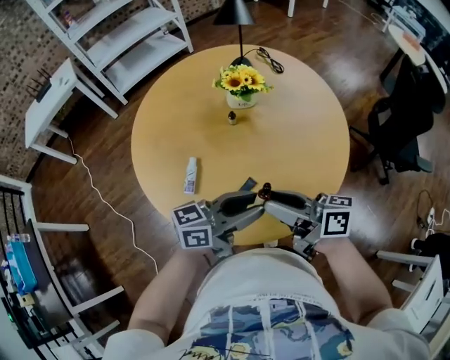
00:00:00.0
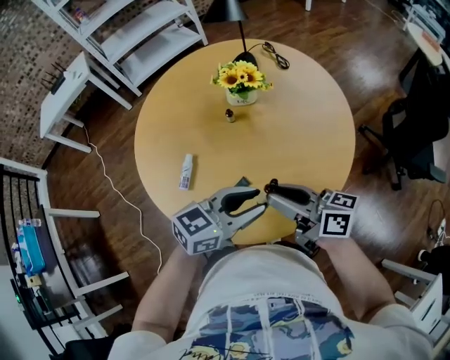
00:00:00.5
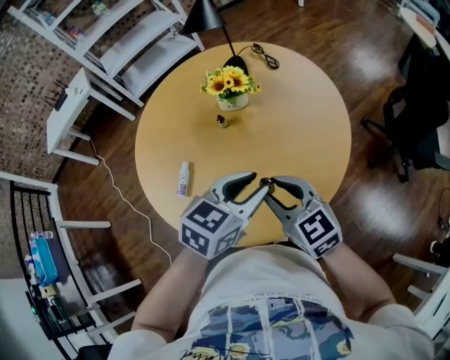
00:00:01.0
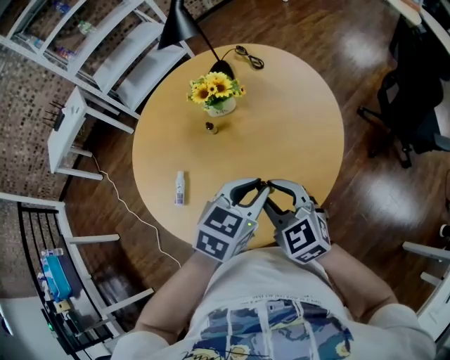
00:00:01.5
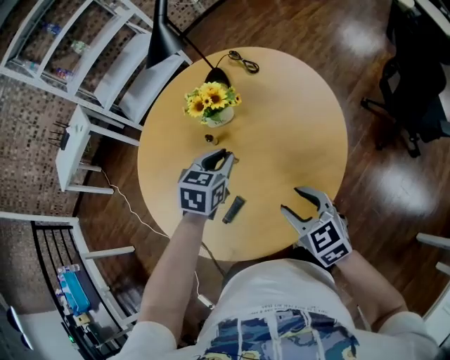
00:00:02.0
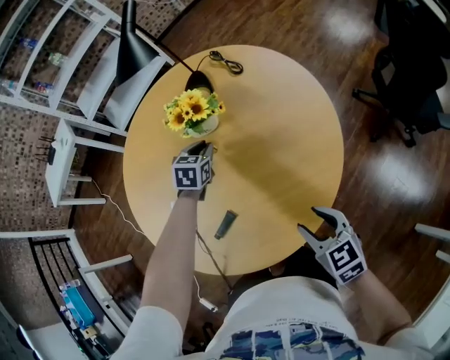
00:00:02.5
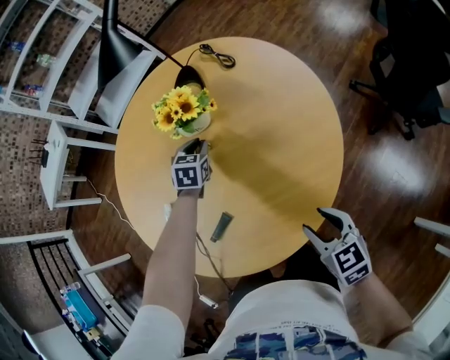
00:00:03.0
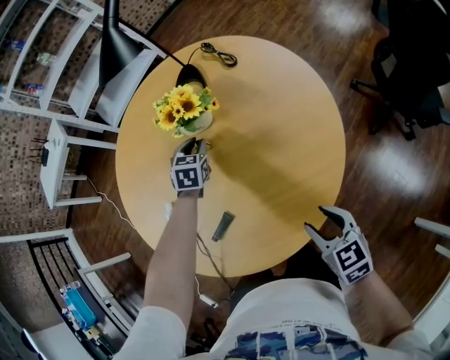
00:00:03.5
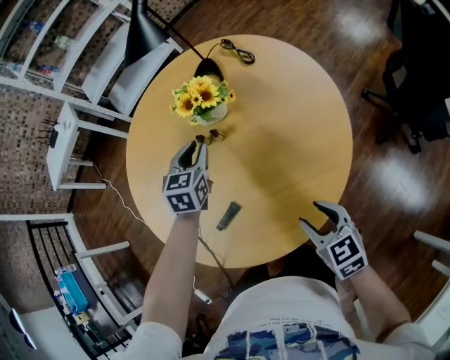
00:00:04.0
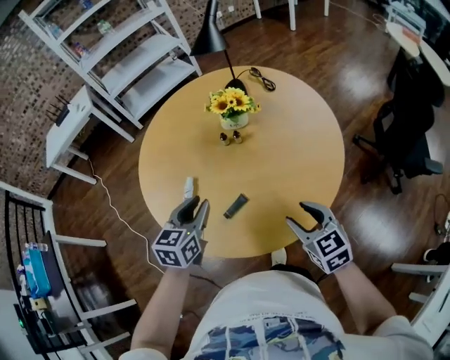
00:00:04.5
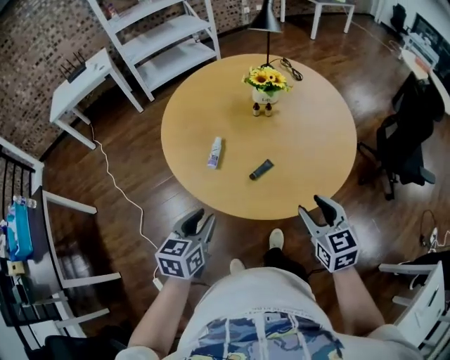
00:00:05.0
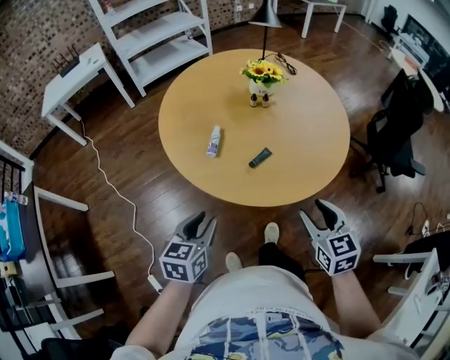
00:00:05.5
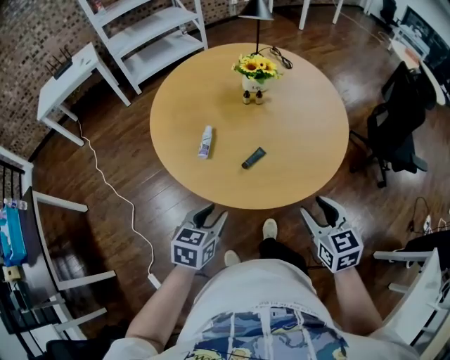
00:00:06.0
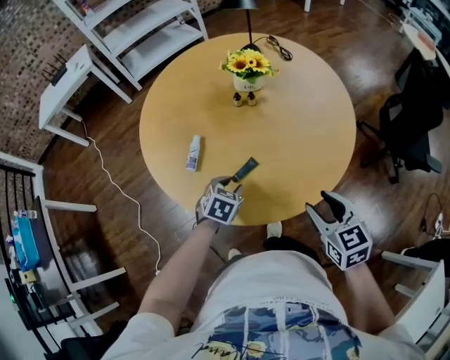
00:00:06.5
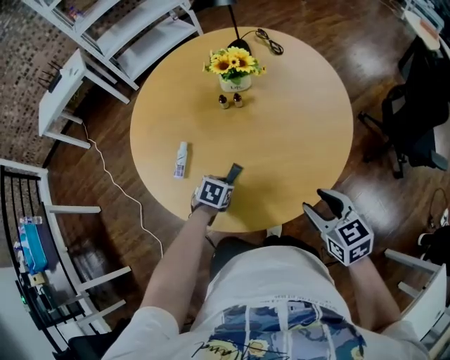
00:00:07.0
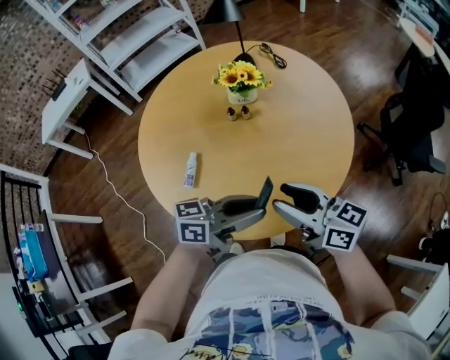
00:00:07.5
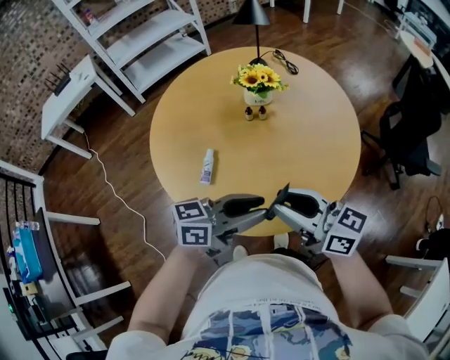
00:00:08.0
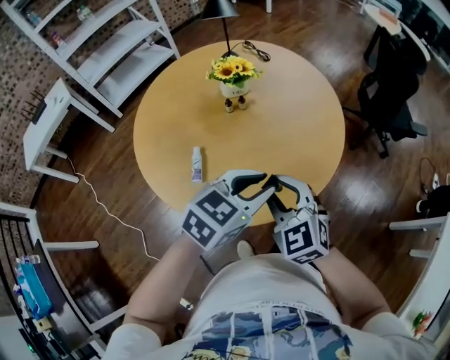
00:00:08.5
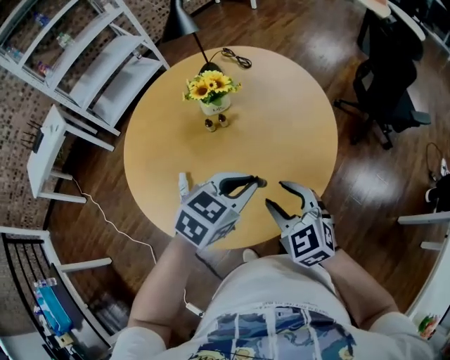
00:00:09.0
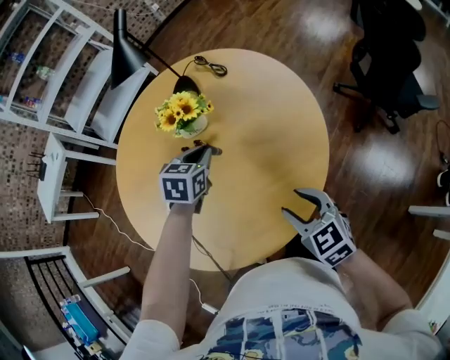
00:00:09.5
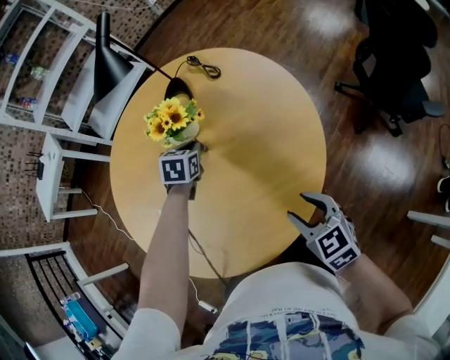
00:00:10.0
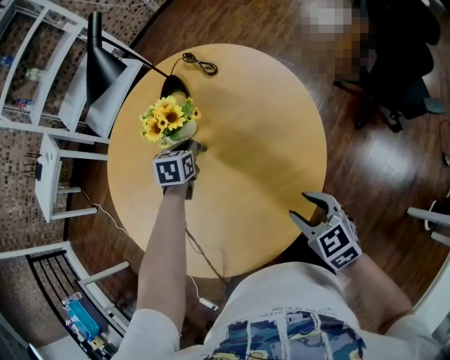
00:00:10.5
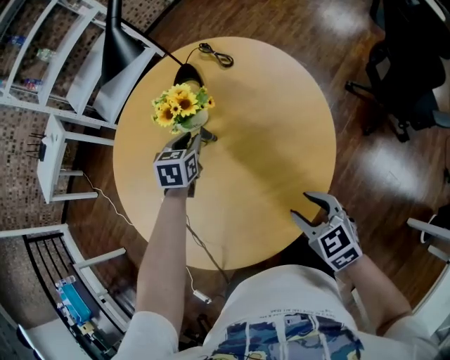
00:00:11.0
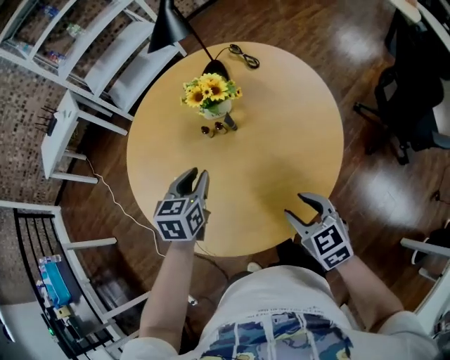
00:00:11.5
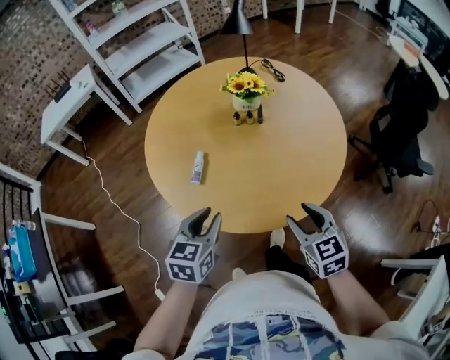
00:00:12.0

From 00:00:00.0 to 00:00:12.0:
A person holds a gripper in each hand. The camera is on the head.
From 00:00:00.0 to 00:00:02.0: The right gripper moves approximately 20 cm, and swivels roughly 60 degrees, while the left gripper changes place by about 25 cm, and tilts its fingers about 50 degrees downward.
From 00:00:02.0 to 00:00:04.0: The left gripper goes roughly 10 cm forward and to the left, while the right gripper moves downward and to the right, roughly 10 cm.
From 00:00:04.0 to 00:00:06.0: The left gripper goes some 50 cm backward and to the left, and changes its angle by about 20 degrees. The right gripper travels backward, to the left and upward by approximately 30 cm.
From 00:00:06.0 to 00:00:08.0: The left gripper changes place by roughly 20 cm, and tips its fingers upward by roughly 40 degrees. The right gripper changes place by about 20 cm, and swivels about 50 degrees.
From 00:00:08.0 to 00:00:10.0: The right gripper shifts by about 35 cm, and tips its fingers downward by some 30 degrees. The left gripper changes place by approximately 50 cm, and angles its fingers downward, by some 50 degrees.
From 00:00:10.0 to 00:00:12.0: The right gripper shifts approximately 25 cm to the left and backward, while the left gripper travels backward and to the left by some 50 cm, and rotates approximately 30 degrees.

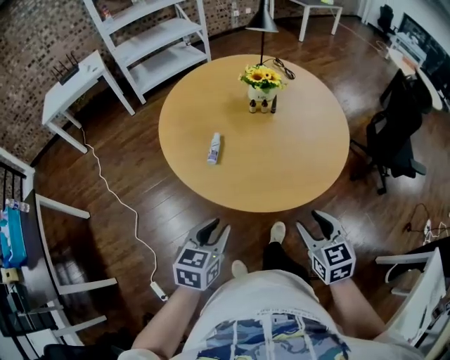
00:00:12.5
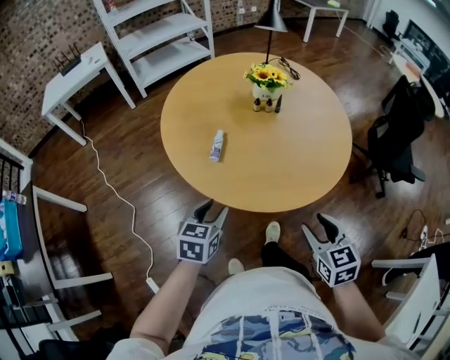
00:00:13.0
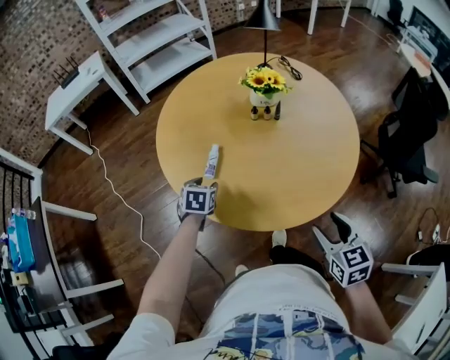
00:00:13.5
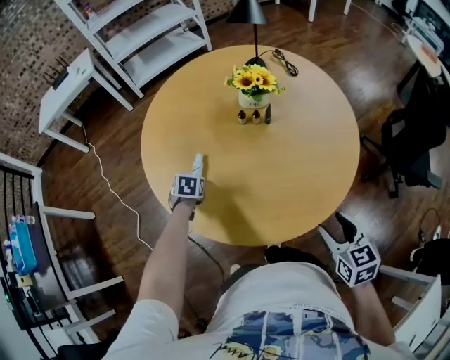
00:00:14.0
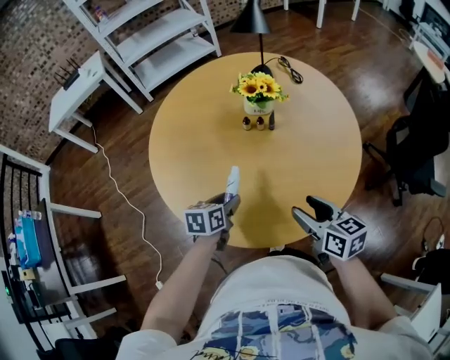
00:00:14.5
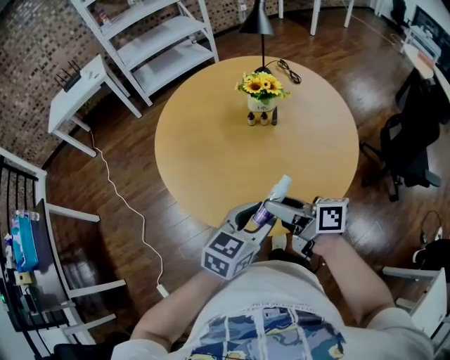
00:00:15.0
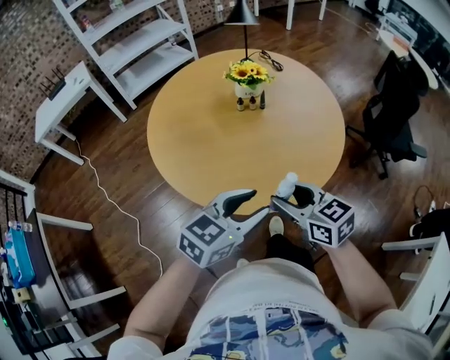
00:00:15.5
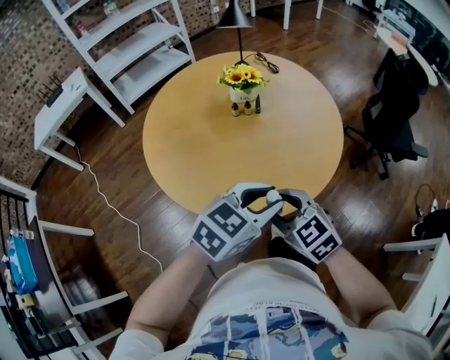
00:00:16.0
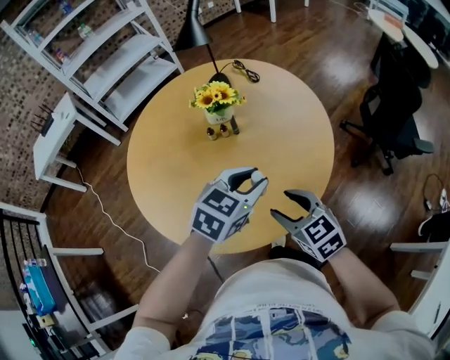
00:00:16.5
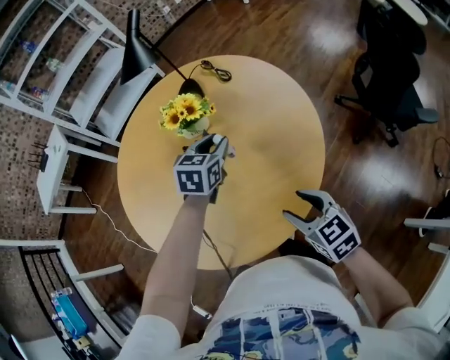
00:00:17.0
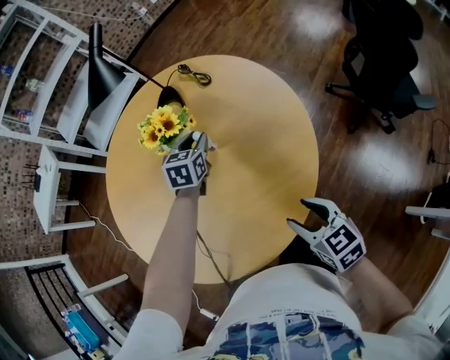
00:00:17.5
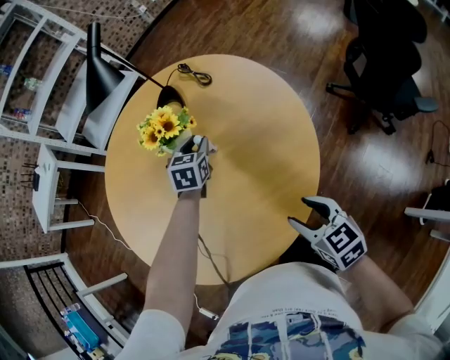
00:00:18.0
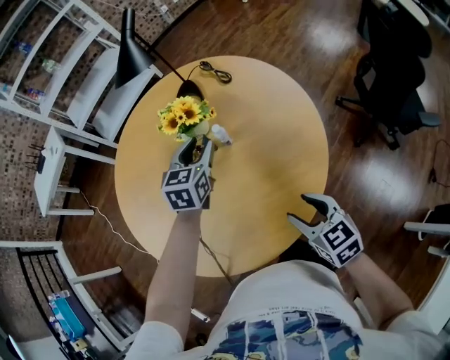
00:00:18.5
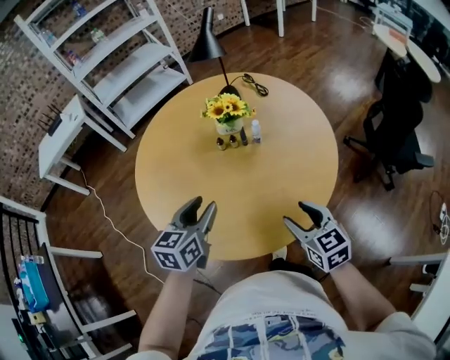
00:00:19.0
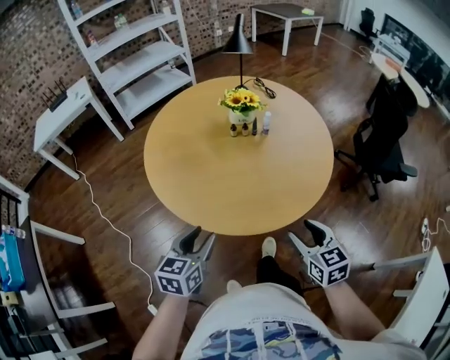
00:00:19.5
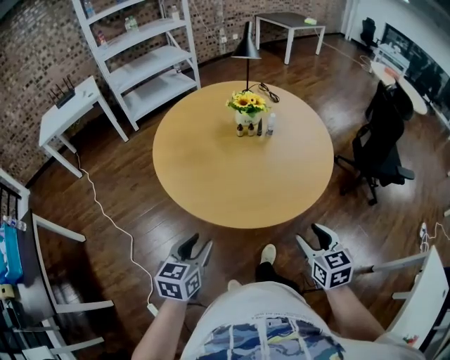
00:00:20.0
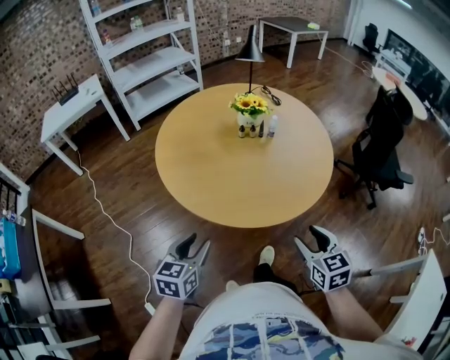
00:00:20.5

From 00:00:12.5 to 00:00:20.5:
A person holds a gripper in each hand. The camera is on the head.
From 00:00:12.5 to 00:00:14.5: The right gripper is displaced forward by roughly 20 cm, and changes its angle by some 30 degrees. The left gripper goes approximately 30 cm forward and to the right, and rotates about 20 degrees.
From 00:00:14.5 to 00:00:16.5: The right gripper moves some 15 cm to the left and comes back, and turns by roughly 20 degrees. Meanwhile the left gripper heads to the right and upward, covering some 25 cm, moves about 20 cm backward and comes back, and rotates around the line of its fingers by some 50 degrees, clockwise from behind.
From 00:00:16.5 to 00:00:18.5: The right gripper travels to the right, forward and downward by roughly 15 cm, while the left gripper heads forward, covering approximately 25 cm, and swivels approximately 30 degrees.
From 00:00:18.5 to 00:00:20.5: The left gripper heads backward and to the left, covering some 60 cm, while the right gripper moves backward and to the left, about 40 cm.

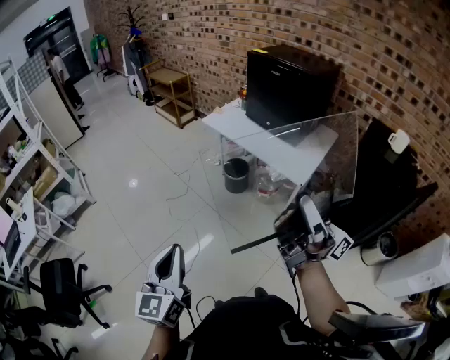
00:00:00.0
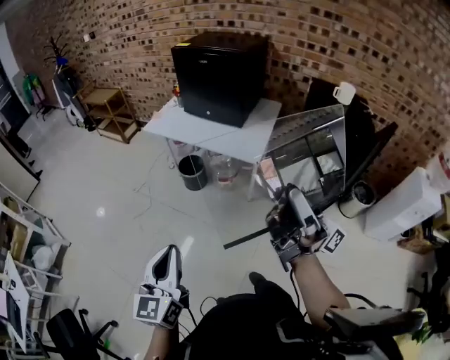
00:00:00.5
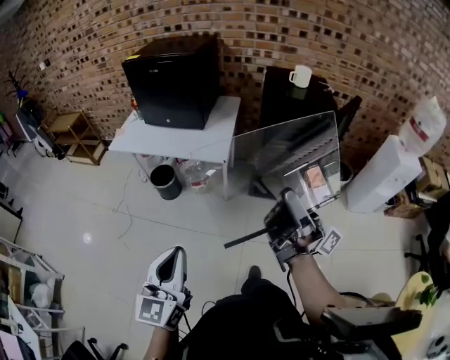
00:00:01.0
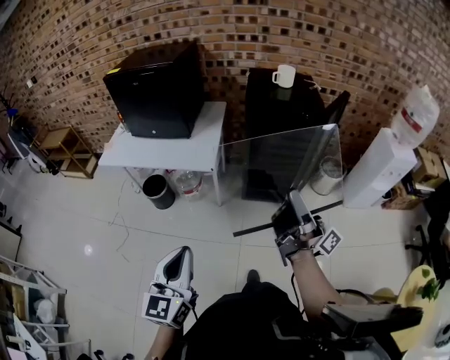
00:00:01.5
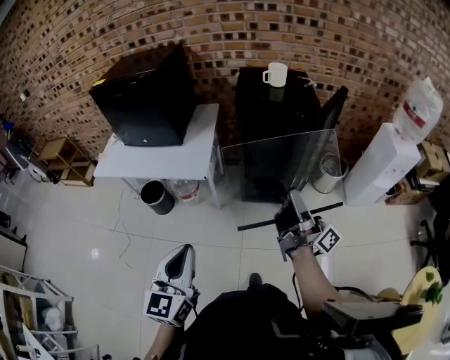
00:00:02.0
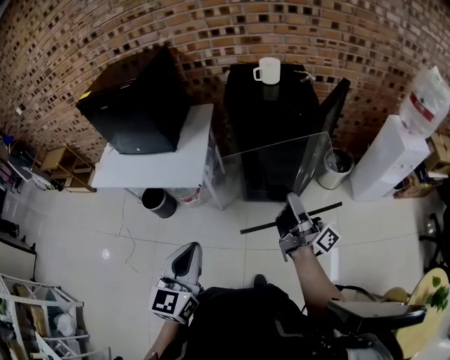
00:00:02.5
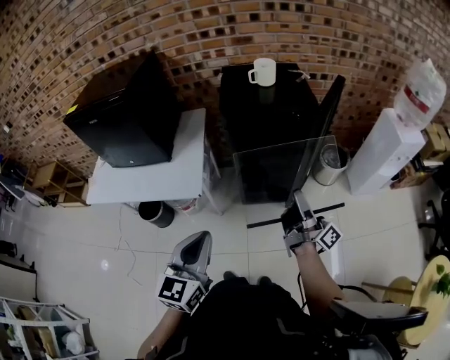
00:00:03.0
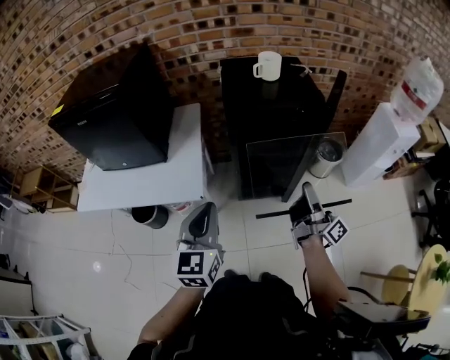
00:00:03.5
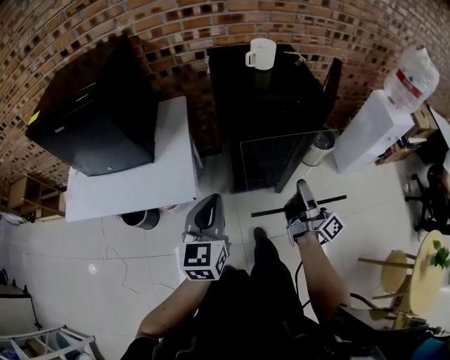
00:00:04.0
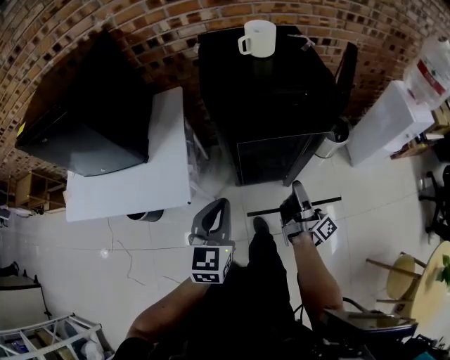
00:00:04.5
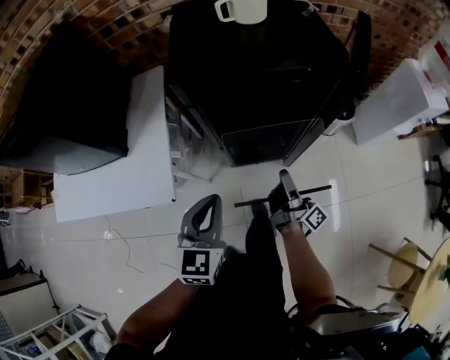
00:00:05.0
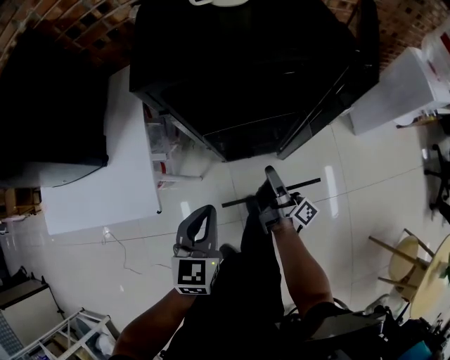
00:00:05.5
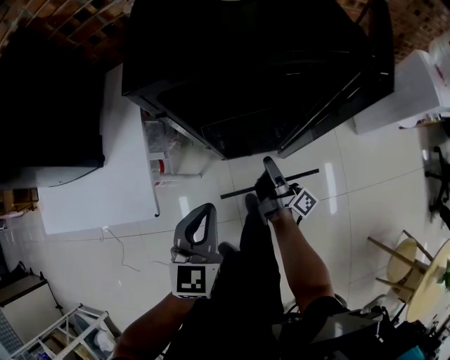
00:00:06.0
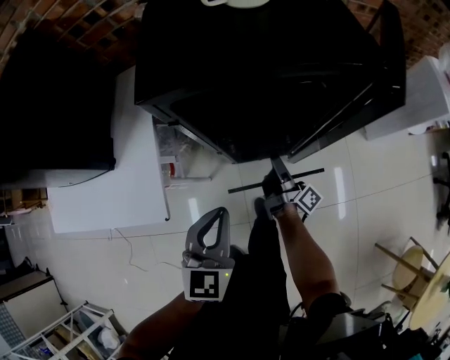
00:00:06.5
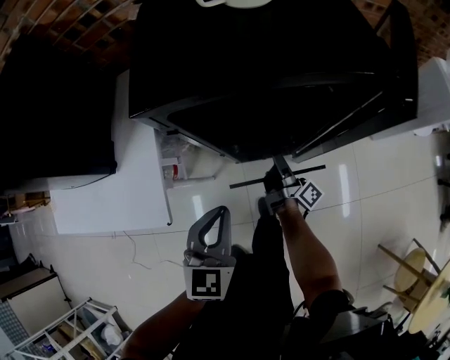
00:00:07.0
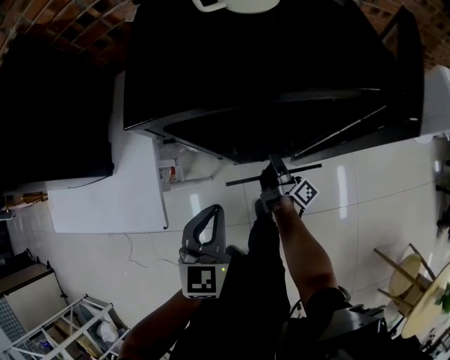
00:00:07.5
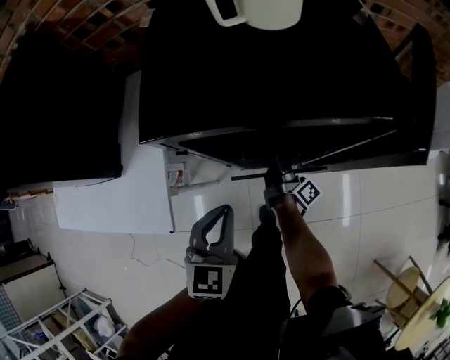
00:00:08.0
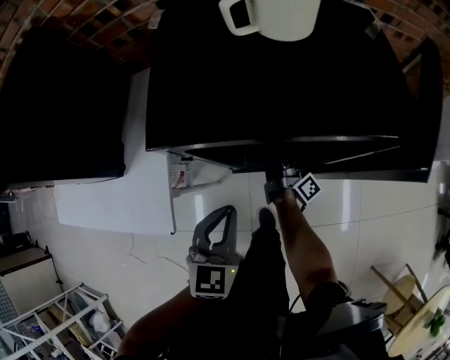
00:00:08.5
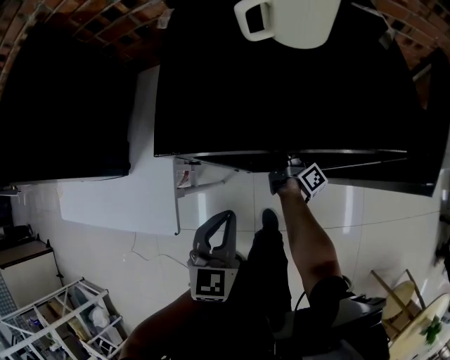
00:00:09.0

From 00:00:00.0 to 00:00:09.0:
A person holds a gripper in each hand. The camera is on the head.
From 00:00:00.0 to 00:00:02.0: The left gripper moves roughly 30 cm, and turns by roughly 40 degrees.
From 00:00:02.0 to 00:00:04.5: The left gripper shifts by some 40 cm, and turns by about 20 degrees.
From 00:00:04.5 to 00:00:07.0: The left gripper is displaced downward by roughly 10 cm.
From 00:00:07.0 to 00:00:09.0: The left gripper ends up roughly 5 cm from where it was.
